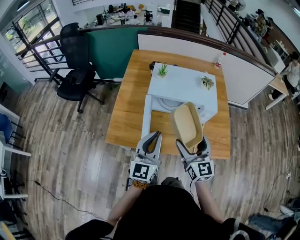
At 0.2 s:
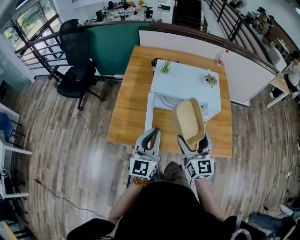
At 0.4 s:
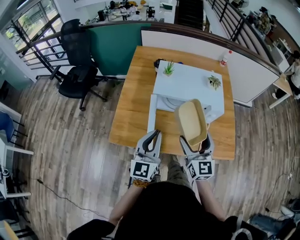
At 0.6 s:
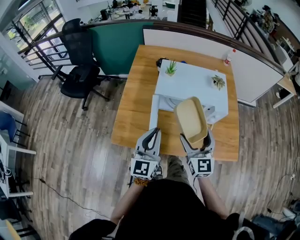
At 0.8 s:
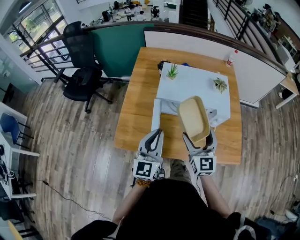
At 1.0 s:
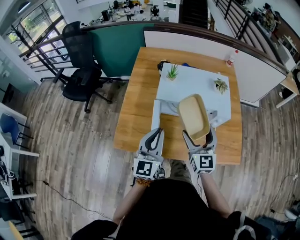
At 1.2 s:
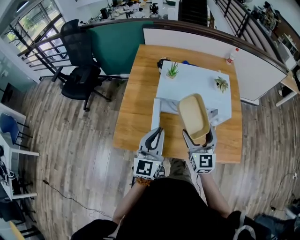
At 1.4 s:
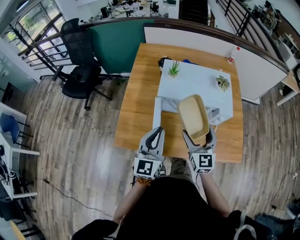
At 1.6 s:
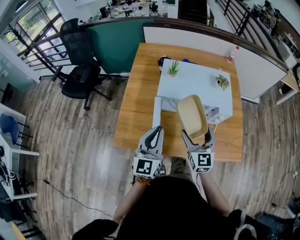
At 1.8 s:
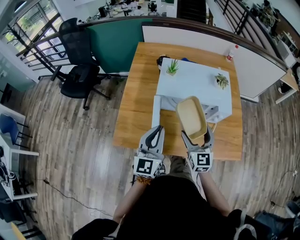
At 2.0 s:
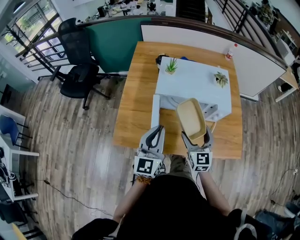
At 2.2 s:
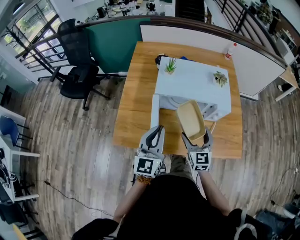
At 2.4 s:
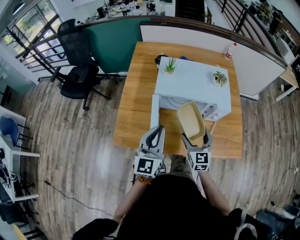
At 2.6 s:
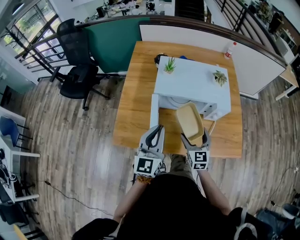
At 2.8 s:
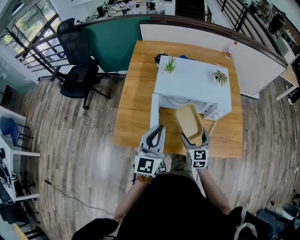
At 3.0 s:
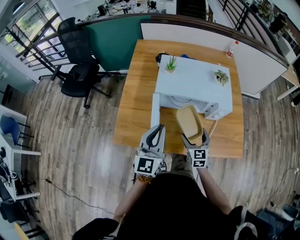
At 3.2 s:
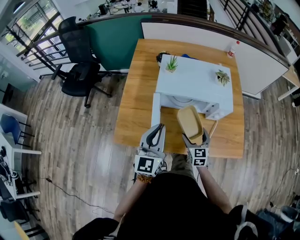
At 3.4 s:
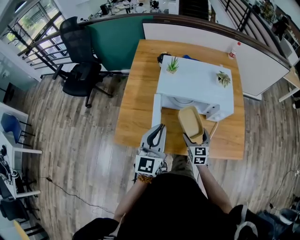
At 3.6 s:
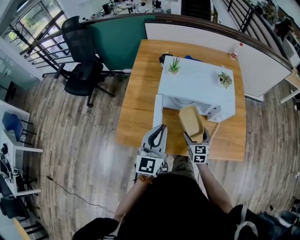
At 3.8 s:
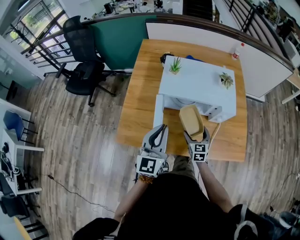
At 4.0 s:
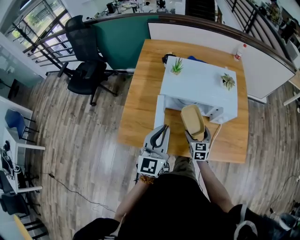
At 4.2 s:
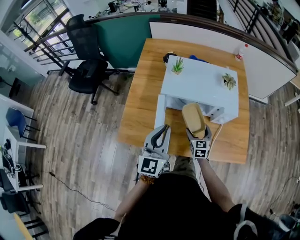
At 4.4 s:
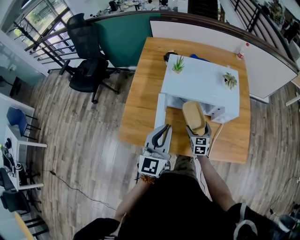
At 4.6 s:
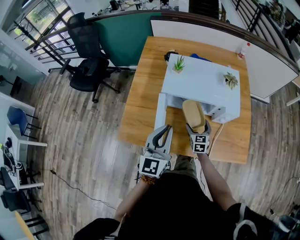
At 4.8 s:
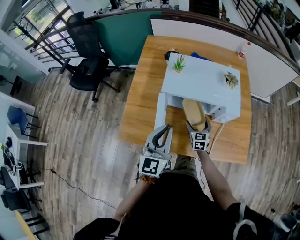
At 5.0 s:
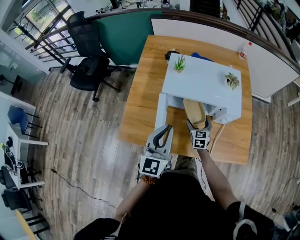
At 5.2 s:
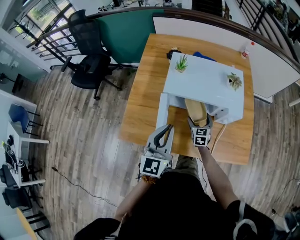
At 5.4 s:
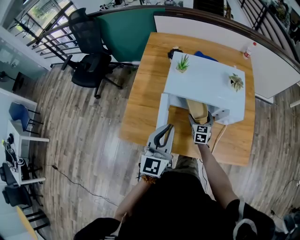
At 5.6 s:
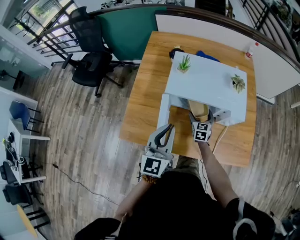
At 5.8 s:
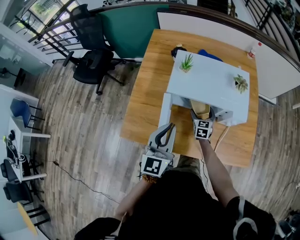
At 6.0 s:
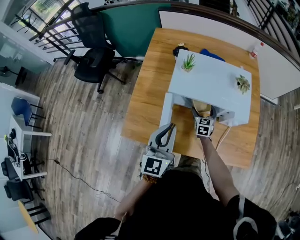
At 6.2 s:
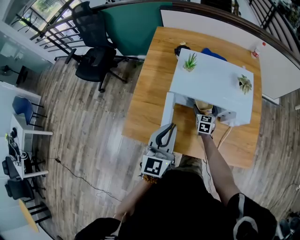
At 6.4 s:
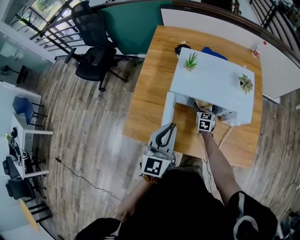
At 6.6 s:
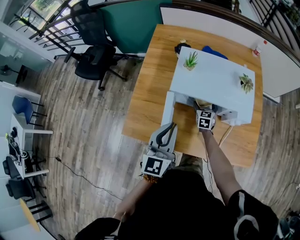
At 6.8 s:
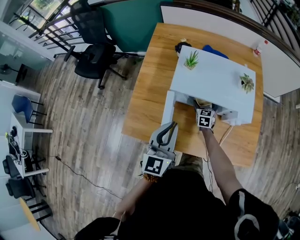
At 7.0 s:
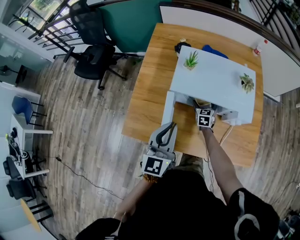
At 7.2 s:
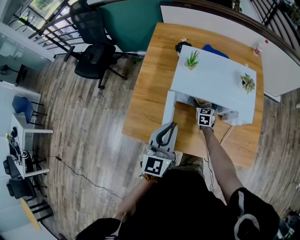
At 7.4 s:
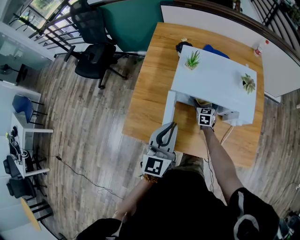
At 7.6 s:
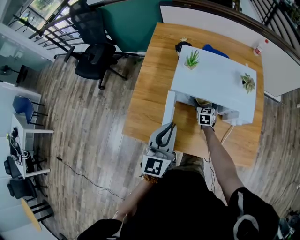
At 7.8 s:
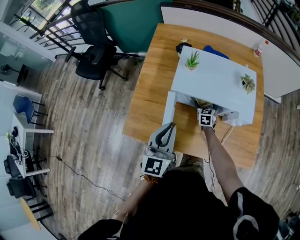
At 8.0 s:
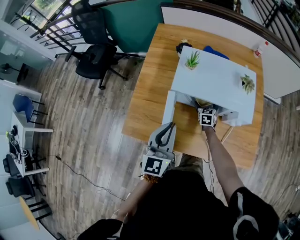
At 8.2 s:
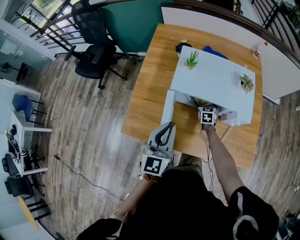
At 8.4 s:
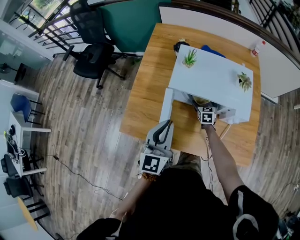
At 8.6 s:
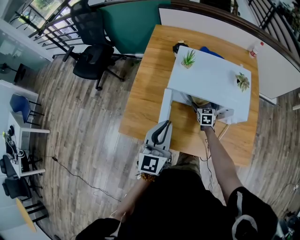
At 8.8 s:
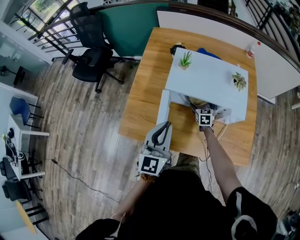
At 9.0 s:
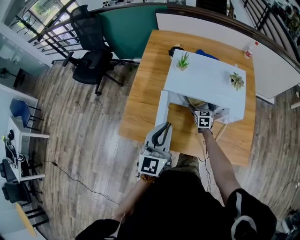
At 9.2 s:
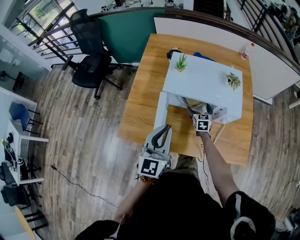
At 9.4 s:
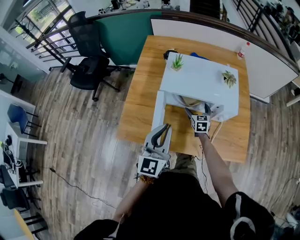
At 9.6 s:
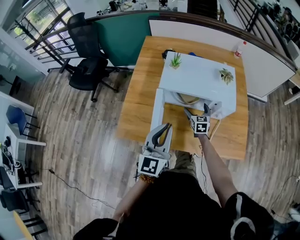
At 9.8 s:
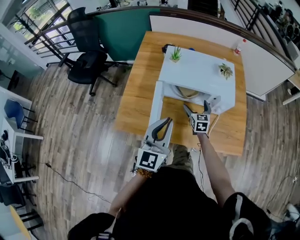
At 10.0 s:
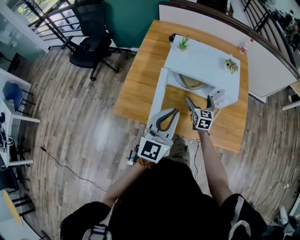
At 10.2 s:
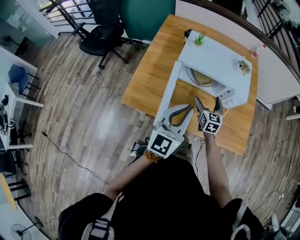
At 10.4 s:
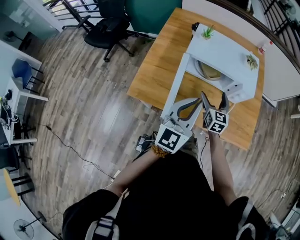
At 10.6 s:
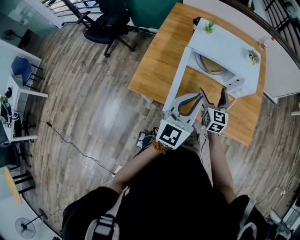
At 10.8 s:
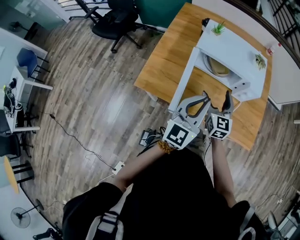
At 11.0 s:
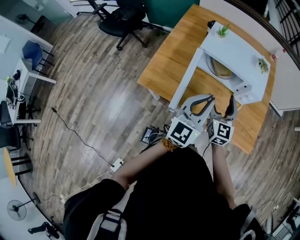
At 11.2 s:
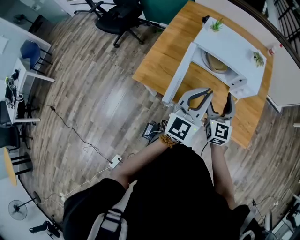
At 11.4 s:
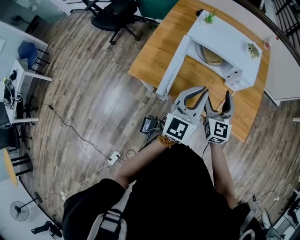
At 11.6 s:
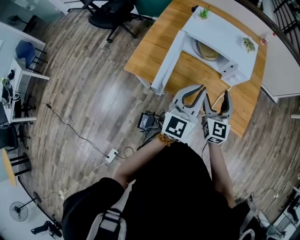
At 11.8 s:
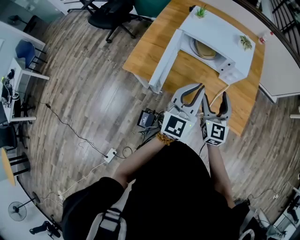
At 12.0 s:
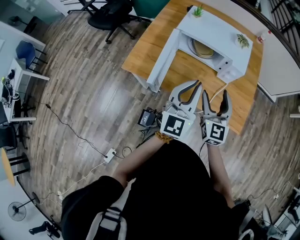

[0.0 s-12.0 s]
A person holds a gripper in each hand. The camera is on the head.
0.0 to 1.6 s: The right gripper is displaced forward and downward by about 10 cm, while the left gripper heads forward, covering roughly 5 cm.
1.6 to 3.0 s: The right gripper travels downward by about 15 cm.
3.0 to 4.4 s: The right gripper is displaced downward and forward by about 10 cm.
4.4 to 6.0 s: The right gripper is displaced forward by roughly 10 cm.
6.0 to 7.6 s: The right gripper shifts by some 5 cm.
7.6 to 9.0 s: The grippers move only a little.
9.0 to 10.4 s: The right gripper travels backward and upward by some 20 cm, while the left gripper travels backward by some 10 cm.
10.4 to 12.0 s: The left gripper travels to the right and backward by some 10 cm. The right gripper travels backward, upward and to the right by roughly 20 cm.

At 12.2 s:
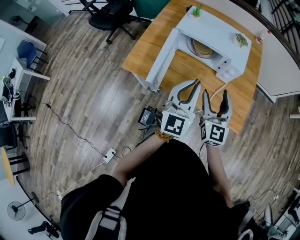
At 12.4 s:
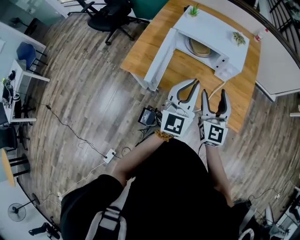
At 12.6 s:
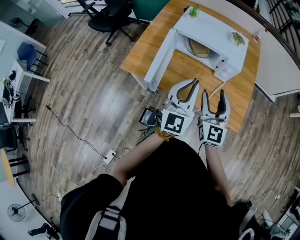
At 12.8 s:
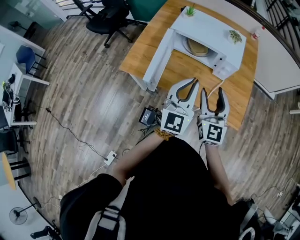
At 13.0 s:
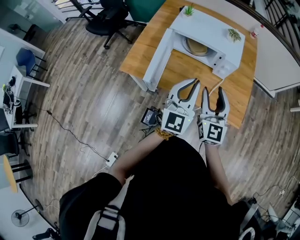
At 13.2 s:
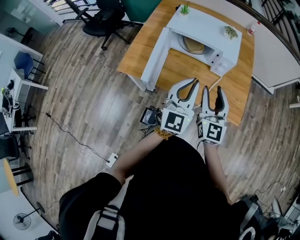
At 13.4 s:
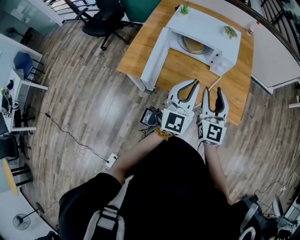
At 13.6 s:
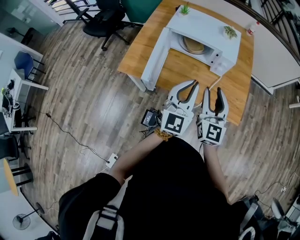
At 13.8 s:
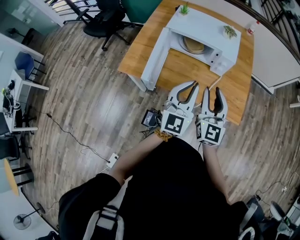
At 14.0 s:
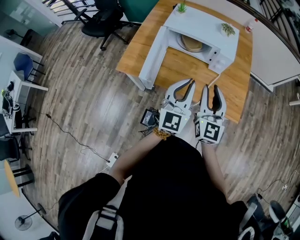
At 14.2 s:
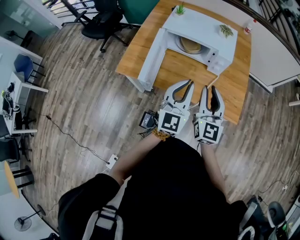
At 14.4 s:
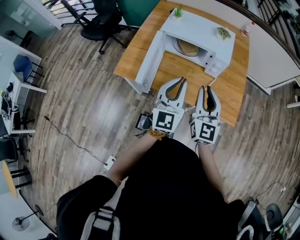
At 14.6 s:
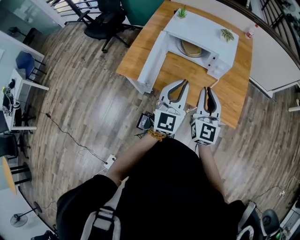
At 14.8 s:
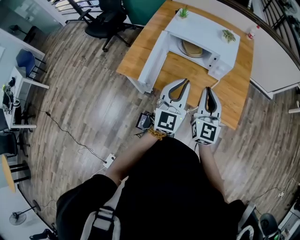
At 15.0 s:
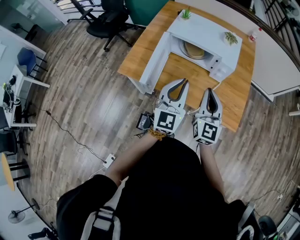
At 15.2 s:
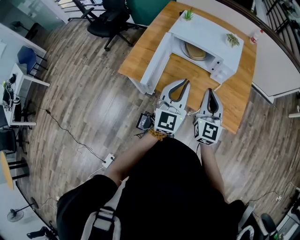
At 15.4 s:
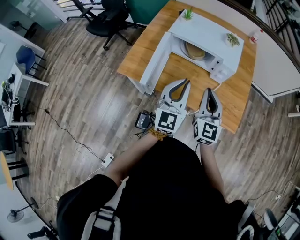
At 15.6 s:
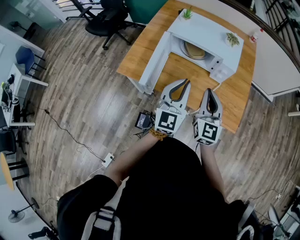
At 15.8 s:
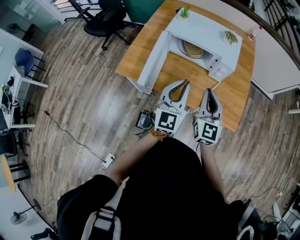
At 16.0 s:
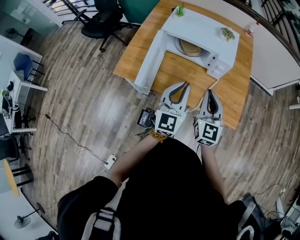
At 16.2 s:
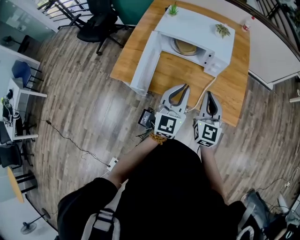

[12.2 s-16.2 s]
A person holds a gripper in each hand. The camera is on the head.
12.2 to 14.8 s: The grippers move only a little.
14.8 to 16.2 s: The right gripper shifts by approximately 5 cm.

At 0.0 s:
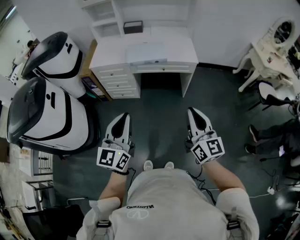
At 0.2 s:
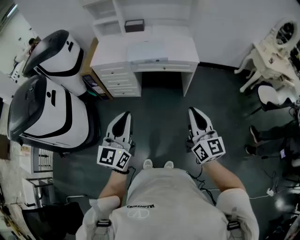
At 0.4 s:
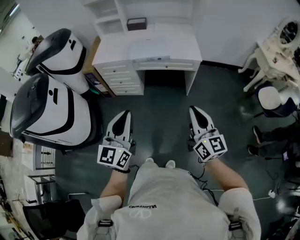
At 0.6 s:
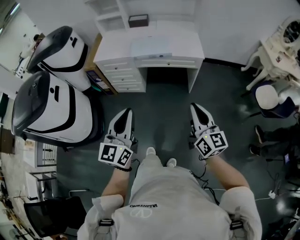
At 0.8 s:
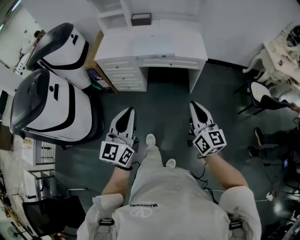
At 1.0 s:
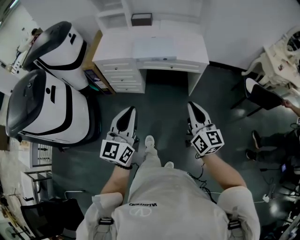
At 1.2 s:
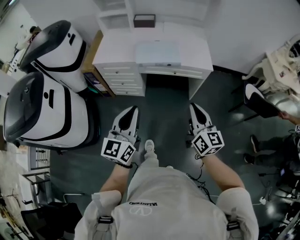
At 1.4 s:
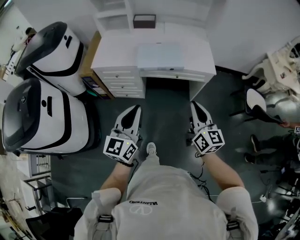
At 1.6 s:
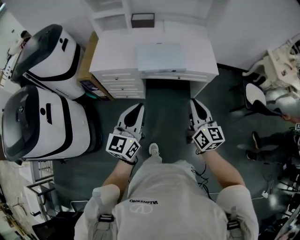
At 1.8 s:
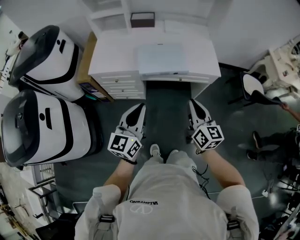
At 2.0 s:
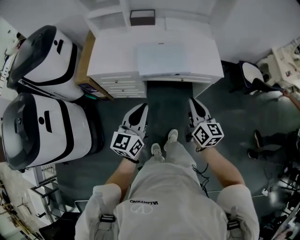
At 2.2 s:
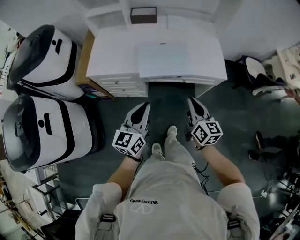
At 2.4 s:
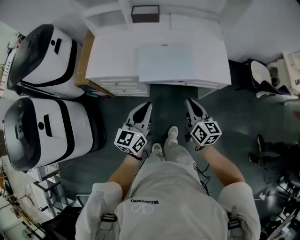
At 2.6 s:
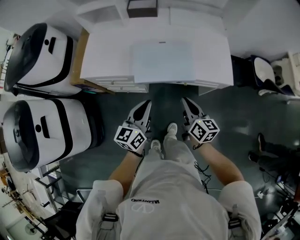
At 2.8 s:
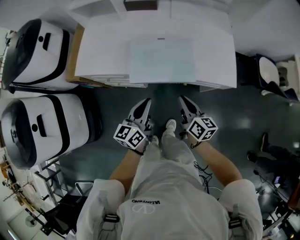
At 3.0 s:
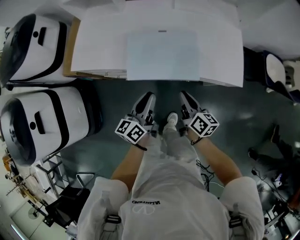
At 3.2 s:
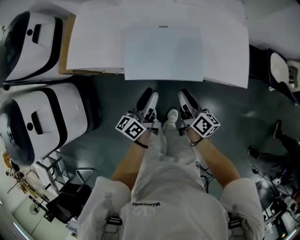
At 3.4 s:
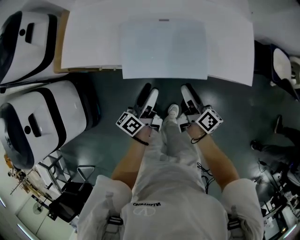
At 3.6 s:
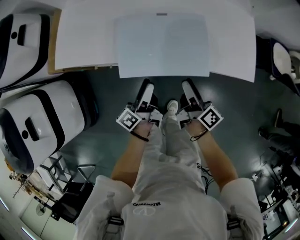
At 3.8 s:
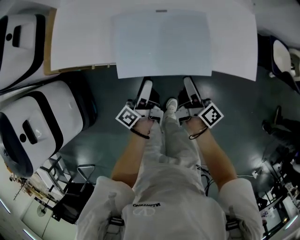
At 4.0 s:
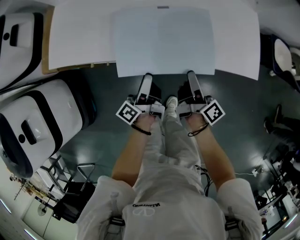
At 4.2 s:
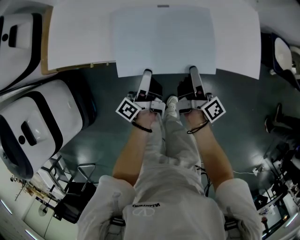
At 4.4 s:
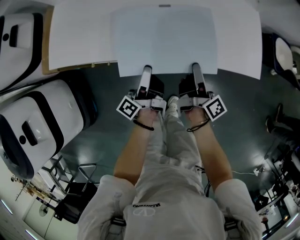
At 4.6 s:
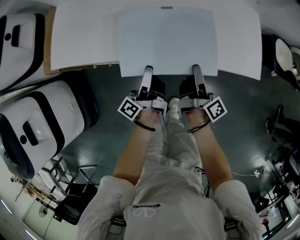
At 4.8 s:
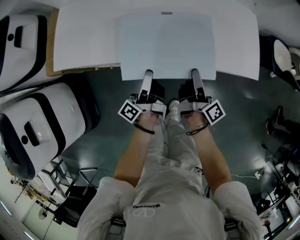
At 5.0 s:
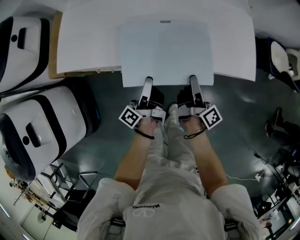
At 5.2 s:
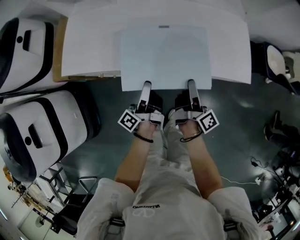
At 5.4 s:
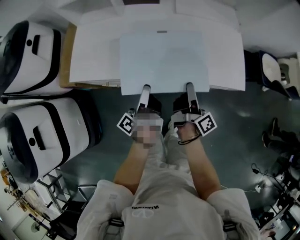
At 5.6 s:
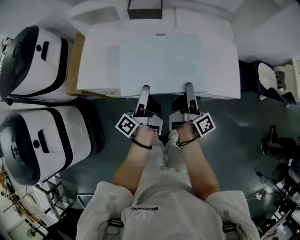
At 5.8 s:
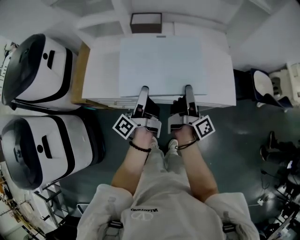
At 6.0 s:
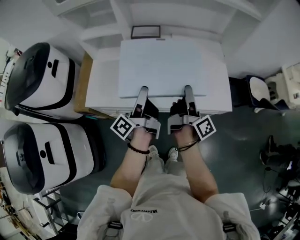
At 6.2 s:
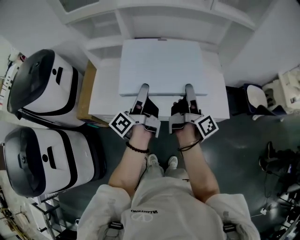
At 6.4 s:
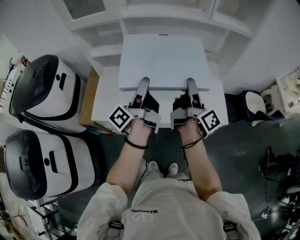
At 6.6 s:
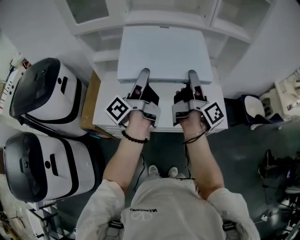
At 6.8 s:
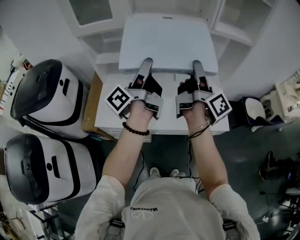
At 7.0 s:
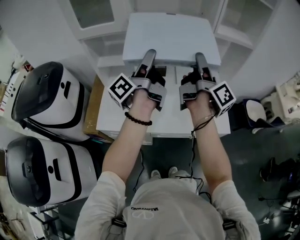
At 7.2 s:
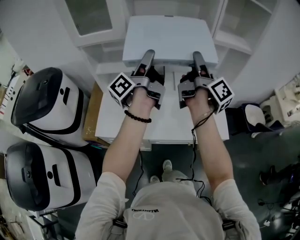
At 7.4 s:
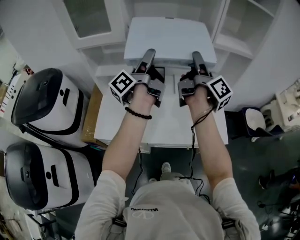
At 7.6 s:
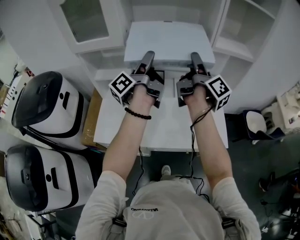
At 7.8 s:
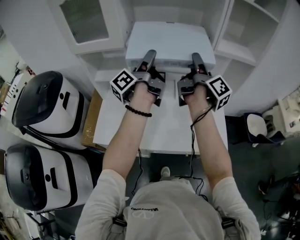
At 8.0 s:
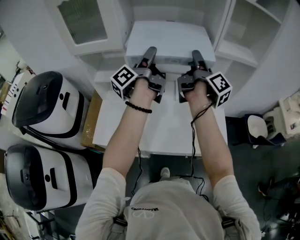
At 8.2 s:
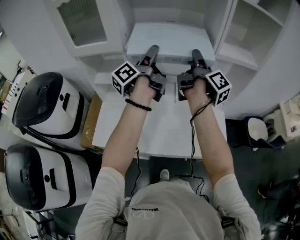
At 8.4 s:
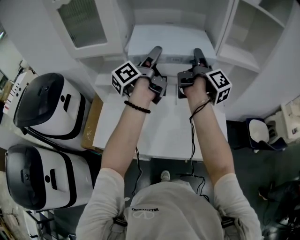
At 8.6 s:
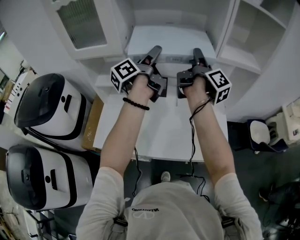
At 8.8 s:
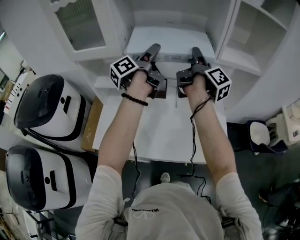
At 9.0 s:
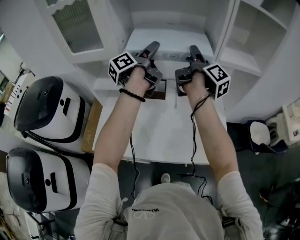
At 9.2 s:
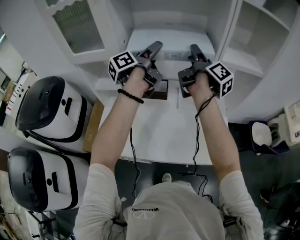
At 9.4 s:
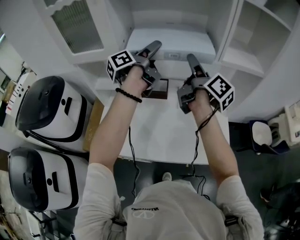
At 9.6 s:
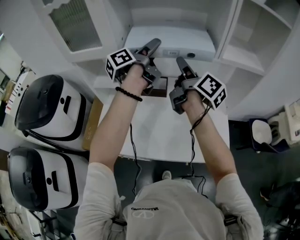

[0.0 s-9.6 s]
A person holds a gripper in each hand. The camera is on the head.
0.0 to 1.6 s: Both grippers travel together forward, about 25 cm.
1.6 to 3.2 s: The grippers both shift forward and downward by some 35 cm. The left gripper turns by some 40 degrees. The right gripper rotates around the line of its fingers by approximately 40 degrees, clockwise from behind.
3.2 to 4.8 s: The left gripper shifts some 10 cm downward and forward, turns by about 40 degrees, and opens, then closes again; the right gripper goes roughly 5 cm forward, rotates approximately 30 degrees, and opens.
4.8 to 6.4 s: Both grippers travel together upward, approximately 35 cm.
6.4 to 8.0 s: The grippers both shift forward and upward by approximately 25 cm.
8.0 to 9.6 s: The left gripper moves forward, some 10 cm. Meanwhile the right gripper heads to the left, covering approximately 5 cm, and turns by roughly 20 degrees.
